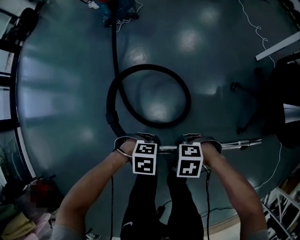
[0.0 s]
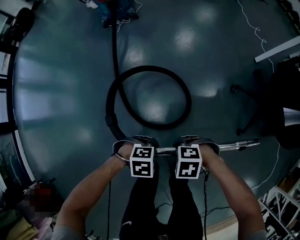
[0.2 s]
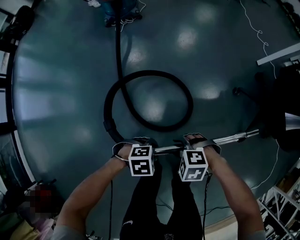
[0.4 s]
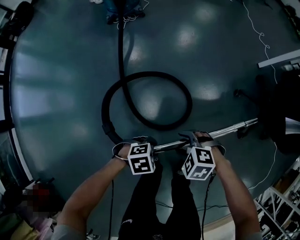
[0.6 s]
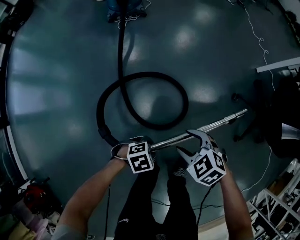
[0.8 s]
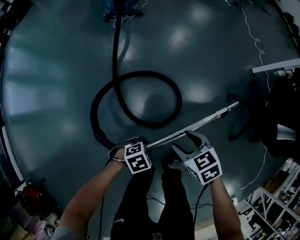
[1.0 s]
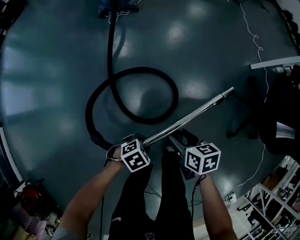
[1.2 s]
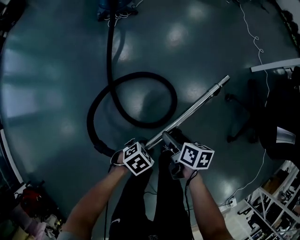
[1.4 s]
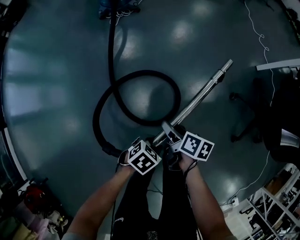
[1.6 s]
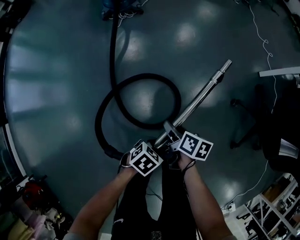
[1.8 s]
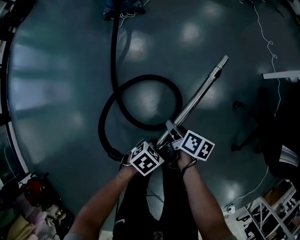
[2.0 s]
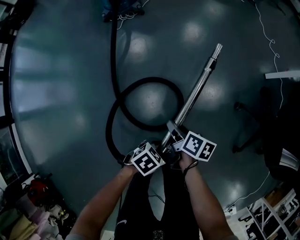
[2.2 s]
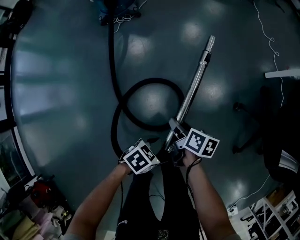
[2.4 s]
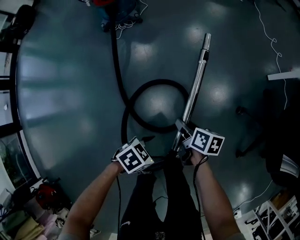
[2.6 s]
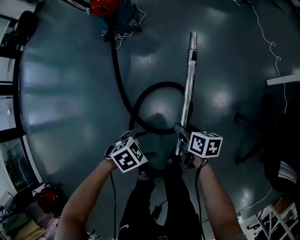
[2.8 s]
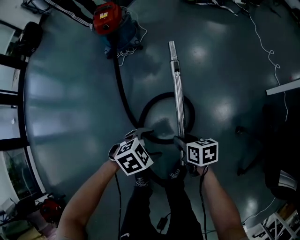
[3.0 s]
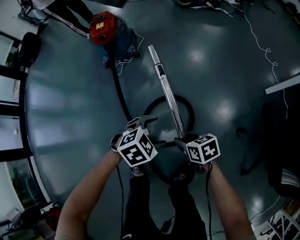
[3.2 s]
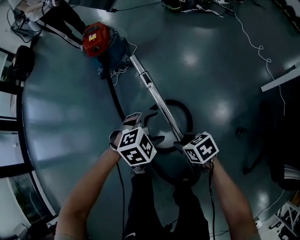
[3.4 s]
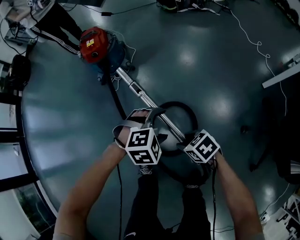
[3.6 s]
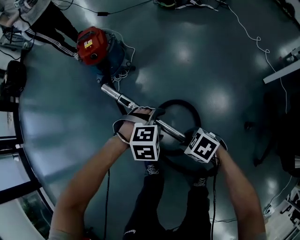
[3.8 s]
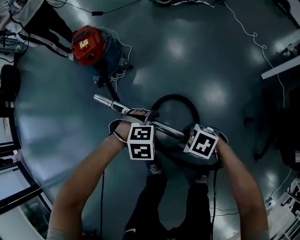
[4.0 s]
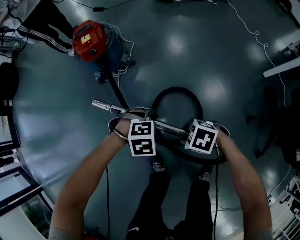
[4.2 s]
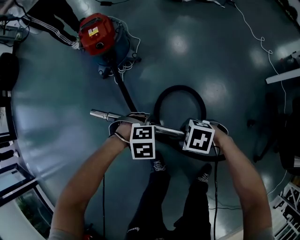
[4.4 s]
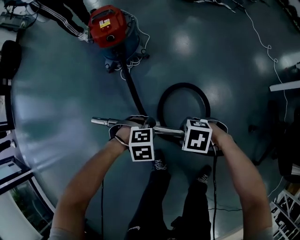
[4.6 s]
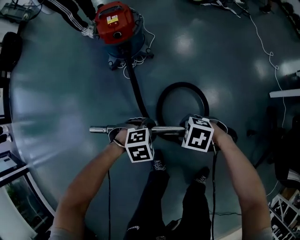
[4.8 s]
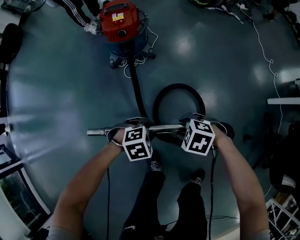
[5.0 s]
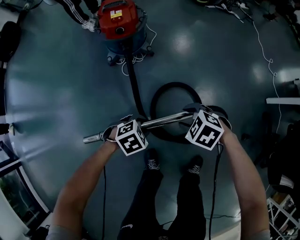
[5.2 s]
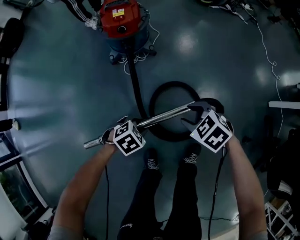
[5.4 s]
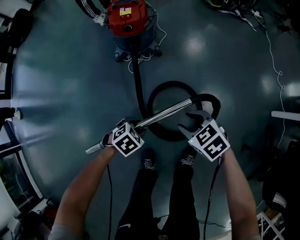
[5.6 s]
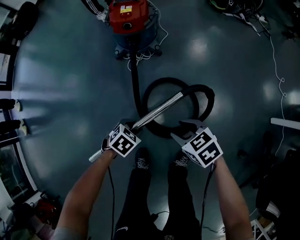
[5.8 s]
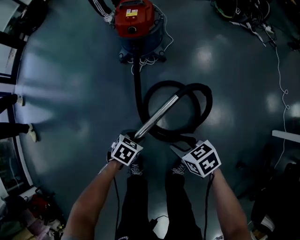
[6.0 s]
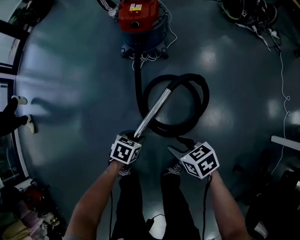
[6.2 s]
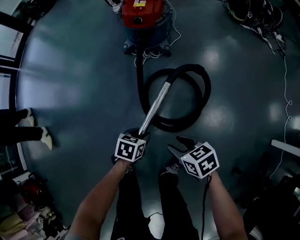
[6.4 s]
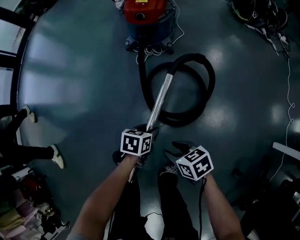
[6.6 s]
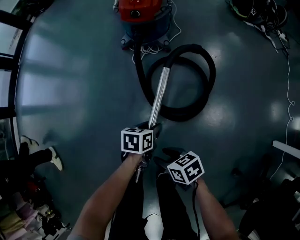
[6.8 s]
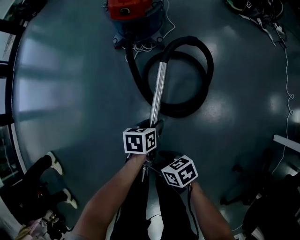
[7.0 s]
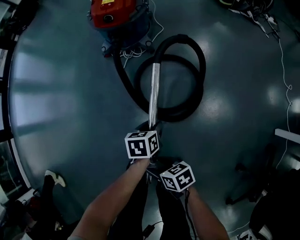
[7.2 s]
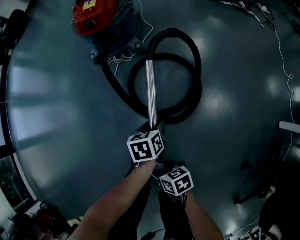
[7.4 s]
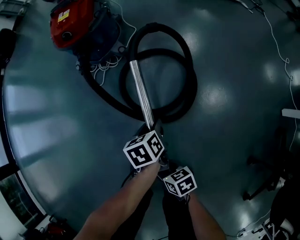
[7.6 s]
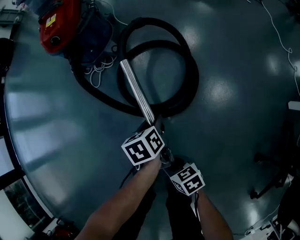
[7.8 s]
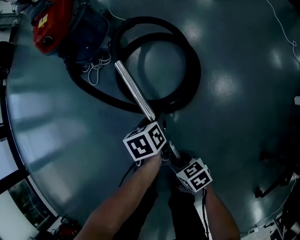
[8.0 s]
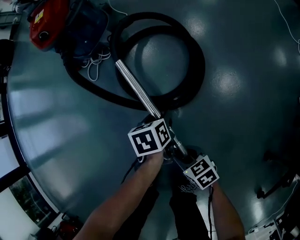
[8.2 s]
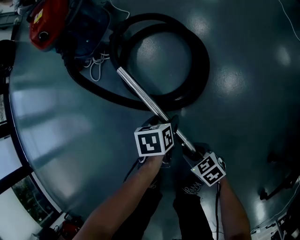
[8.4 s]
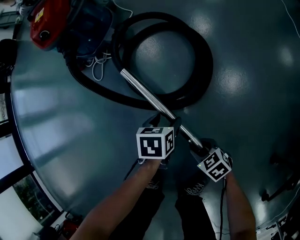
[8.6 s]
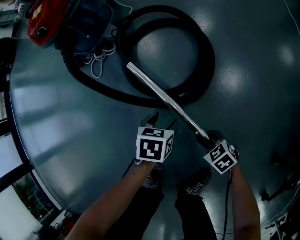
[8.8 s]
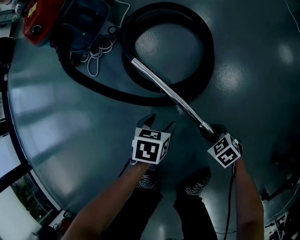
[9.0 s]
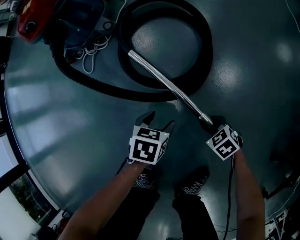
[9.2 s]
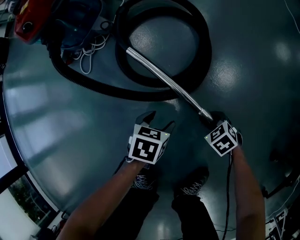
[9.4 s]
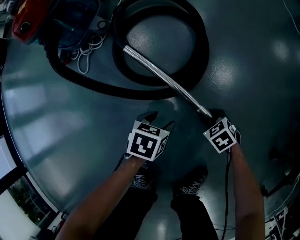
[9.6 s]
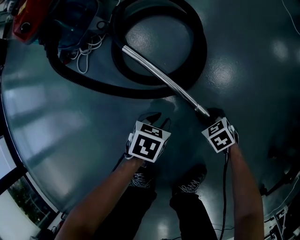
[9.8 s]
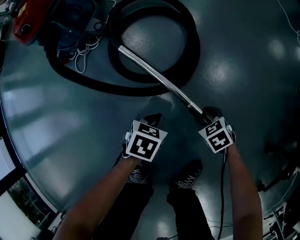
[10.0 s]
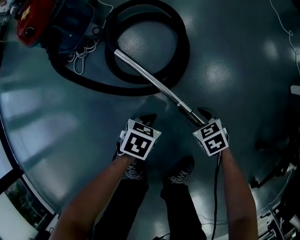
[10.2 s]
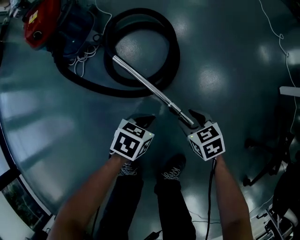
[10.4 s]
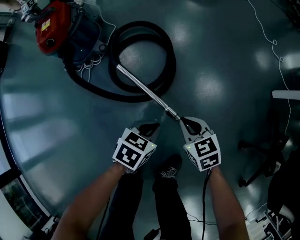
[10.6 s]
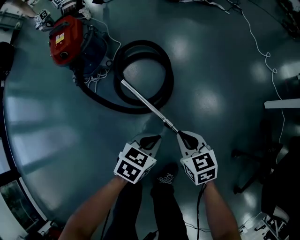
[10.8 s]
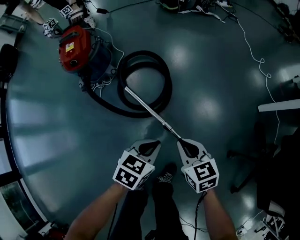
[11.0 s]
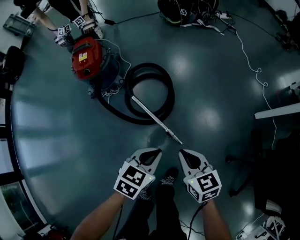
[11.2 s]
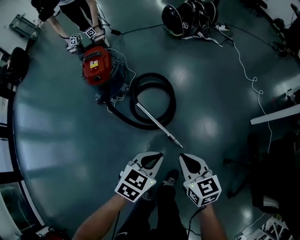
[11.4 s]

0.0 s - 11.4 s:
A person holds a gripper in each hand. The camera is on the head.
0.0 s - 1.4 s: The left gripper changes place by some 15 cm, and changes its angle by roughly 40 degrees; the right gripper ends up approximately 20 cm from where it was, rotates around the line of its fingers by roughly 90 degrees, clockwise from behind, and opens.
1.4 s - 2.8 s: The right gripper shifts by some 20 cm, and closes its fingers, while the left gripper changes place by some 20 cm, and opens up.
2.8 s - 4.2 s: The left gripper ends up approximately 30 cm from where it was, twists approximately 50 degrees clockwise, seen from behind, and closes its fingers. Meanwhile the right gripper moves about 20 cm, and rotates around the line of its fingers by some 60 degrees, counterclockwise from behind.
4.2 s - 5.6 s: The left gripper ends up about 15 cm from where it was, and rotates around the line of its fingers by about 50 degrees, counterclockwise from behind; the right gripper ends up about 15 cm from where it was.
5.6 s - 7.2 s: The left gripper ends up about 20 cm from where it was, and twists roughly 60 degrees counterclockwise, seen from behind, while the right gripper moves downward, roughly 15 cm, and turns by some 40 degrees.
7.2 s - 8.6 s: The right gripper goes about 30 cm downward and to the right, swivels some 30 degrees, and closes up; the left gripper goes approximately 20 cm downward and to the right, turns by roughly 20 degrees, and opens up.
8.6 s - 10.0 s: The right gripper ends up roughly 10 cm from where it was. Meanwhile the left gripper ends up roughly 5 cm from where it was, changes its angle by some 30 degrees, and closes its fingers.
10.0 s - 11.4 s: Both grippers travel together upward, approximately 60 cm. The right gripper angles its fingers upward, by about 40 degrees, and closes. The left gripper swivels roughly 30 degrees.

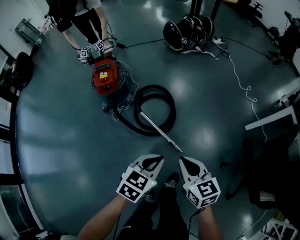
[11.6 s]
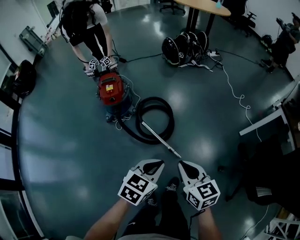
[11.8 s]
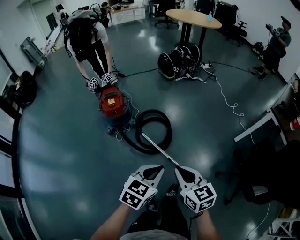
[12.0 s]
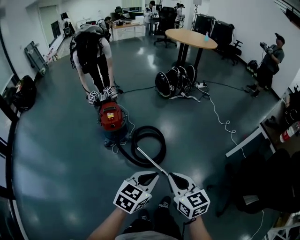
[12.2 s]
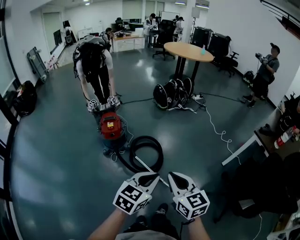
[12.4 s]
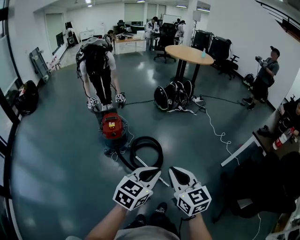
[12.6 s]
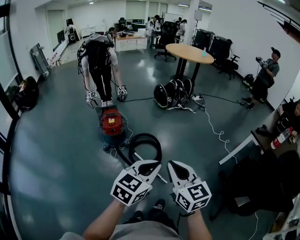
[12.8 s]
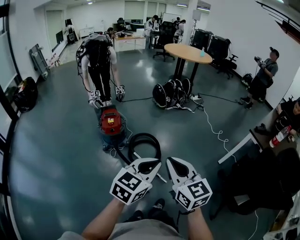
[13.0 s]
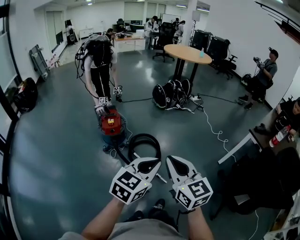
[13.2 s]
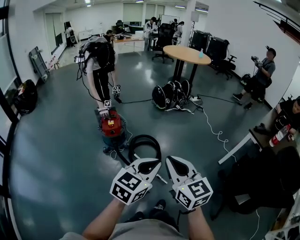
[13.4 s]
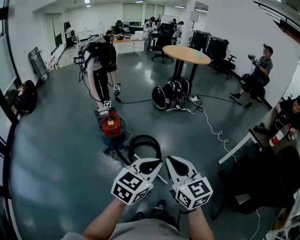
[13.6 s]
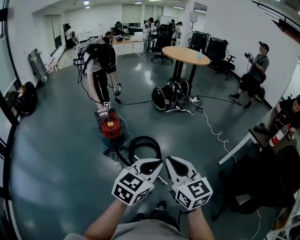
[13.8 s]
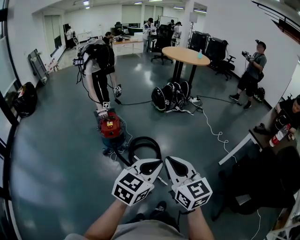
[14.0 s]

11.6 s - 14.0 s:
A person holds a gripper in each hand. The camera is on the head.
11.6 s - 12.8 s: Both grippers move upward, roughly 30 cm. The right gripper rotates some 20 degrees. Meanwhile the left gripper changes its angle by roughly 20 degrees.
12.8 s - 14.0 s: The grippers make only small movements.

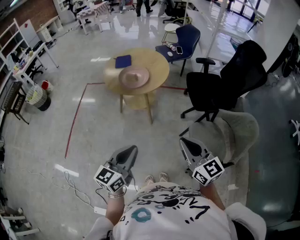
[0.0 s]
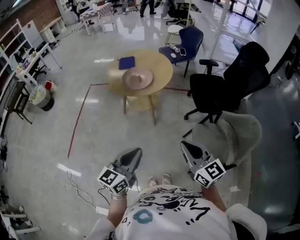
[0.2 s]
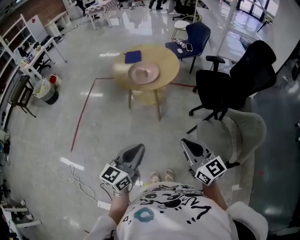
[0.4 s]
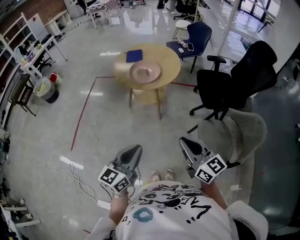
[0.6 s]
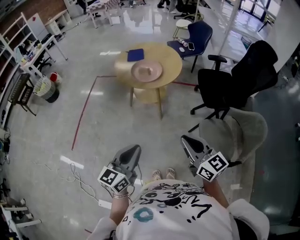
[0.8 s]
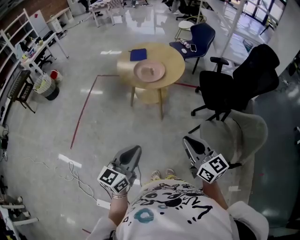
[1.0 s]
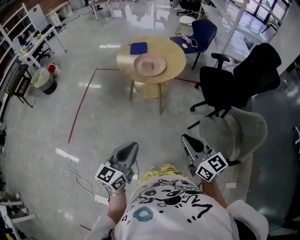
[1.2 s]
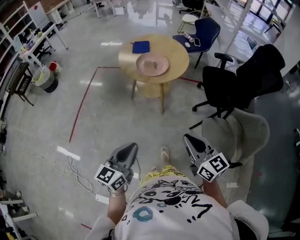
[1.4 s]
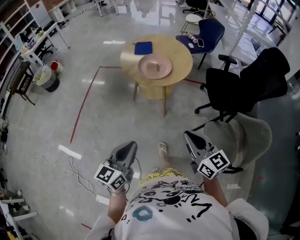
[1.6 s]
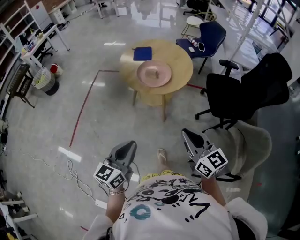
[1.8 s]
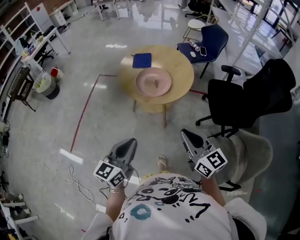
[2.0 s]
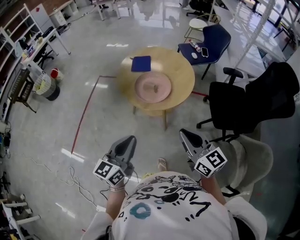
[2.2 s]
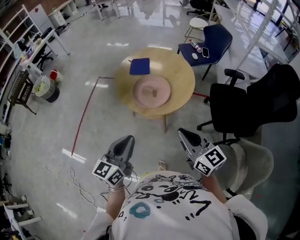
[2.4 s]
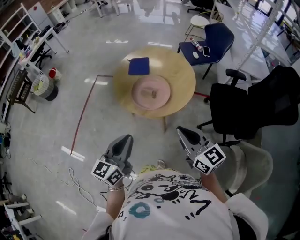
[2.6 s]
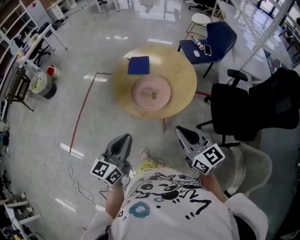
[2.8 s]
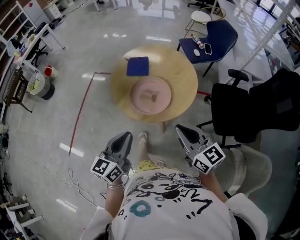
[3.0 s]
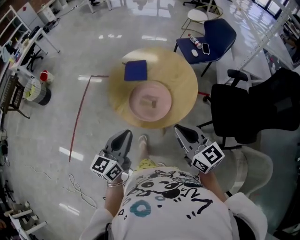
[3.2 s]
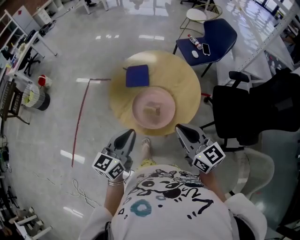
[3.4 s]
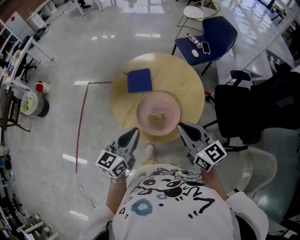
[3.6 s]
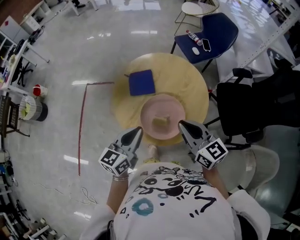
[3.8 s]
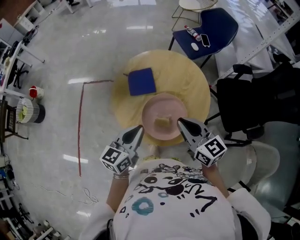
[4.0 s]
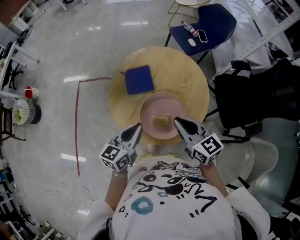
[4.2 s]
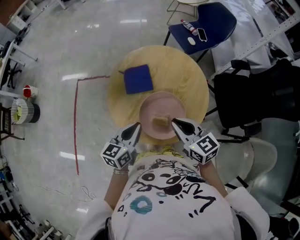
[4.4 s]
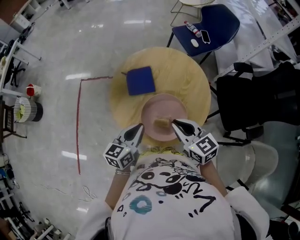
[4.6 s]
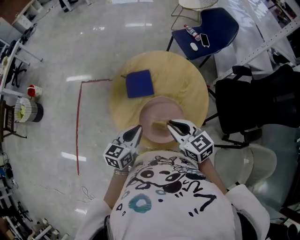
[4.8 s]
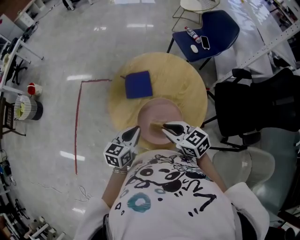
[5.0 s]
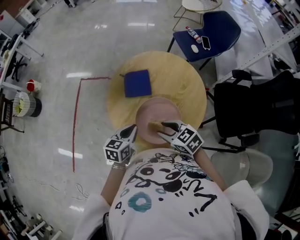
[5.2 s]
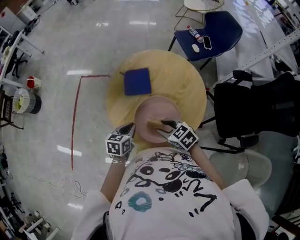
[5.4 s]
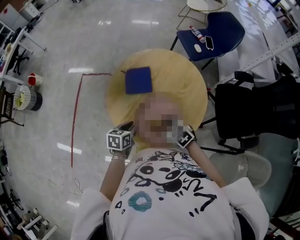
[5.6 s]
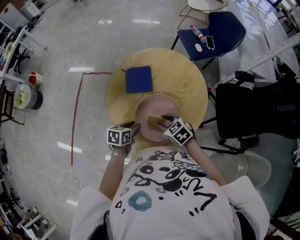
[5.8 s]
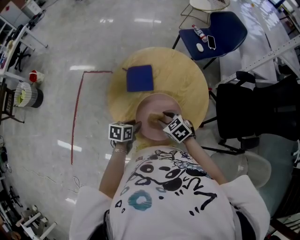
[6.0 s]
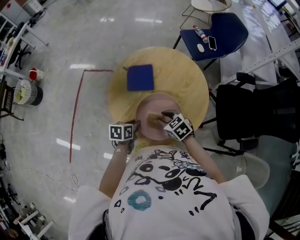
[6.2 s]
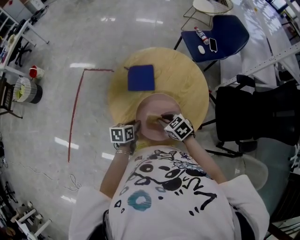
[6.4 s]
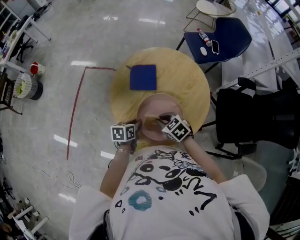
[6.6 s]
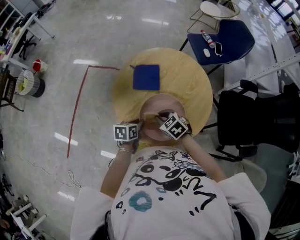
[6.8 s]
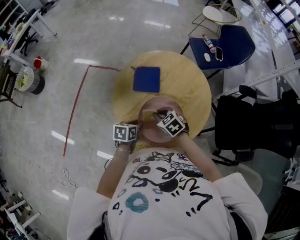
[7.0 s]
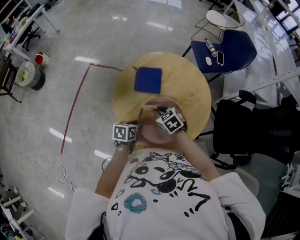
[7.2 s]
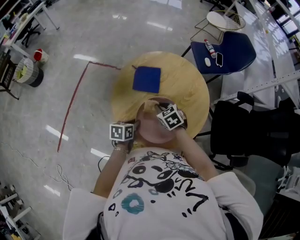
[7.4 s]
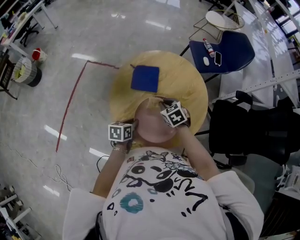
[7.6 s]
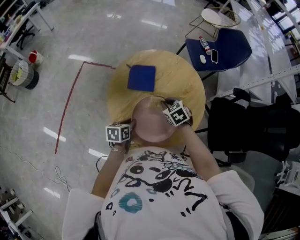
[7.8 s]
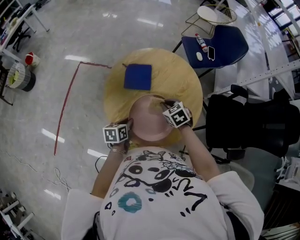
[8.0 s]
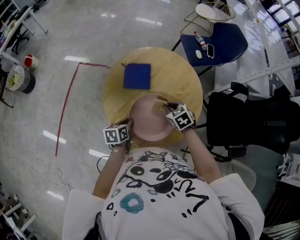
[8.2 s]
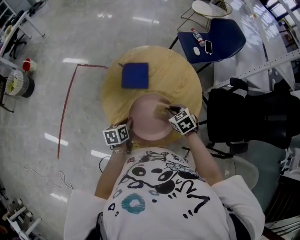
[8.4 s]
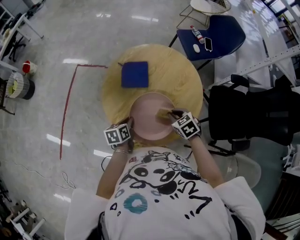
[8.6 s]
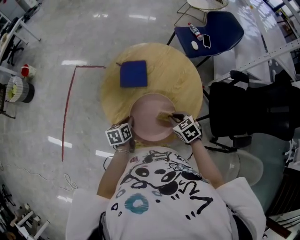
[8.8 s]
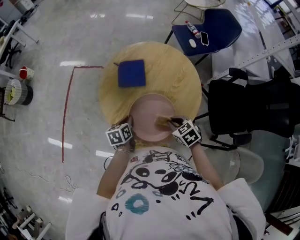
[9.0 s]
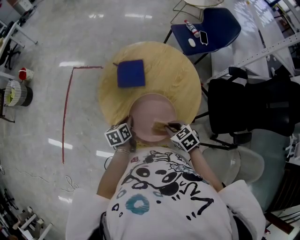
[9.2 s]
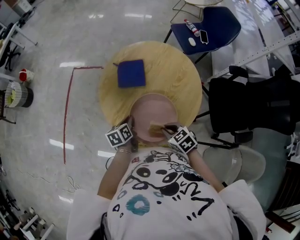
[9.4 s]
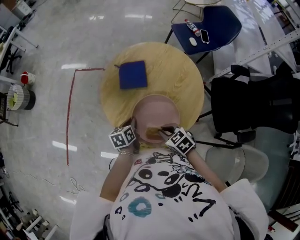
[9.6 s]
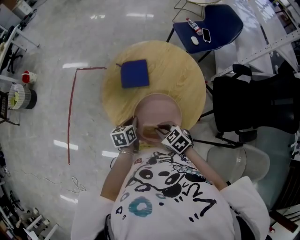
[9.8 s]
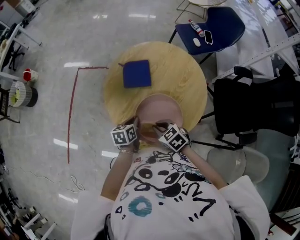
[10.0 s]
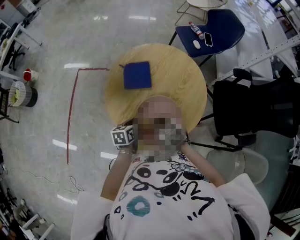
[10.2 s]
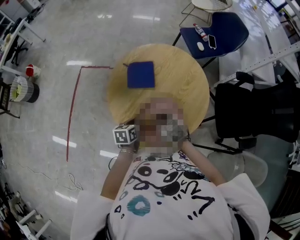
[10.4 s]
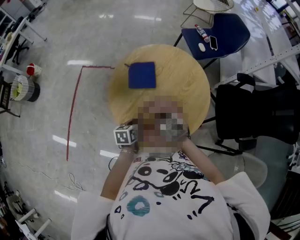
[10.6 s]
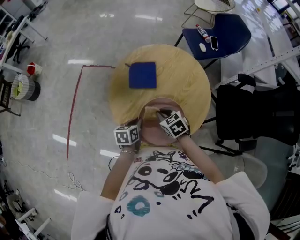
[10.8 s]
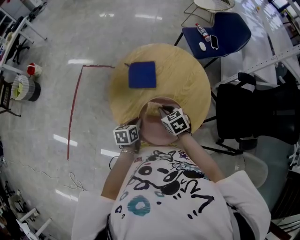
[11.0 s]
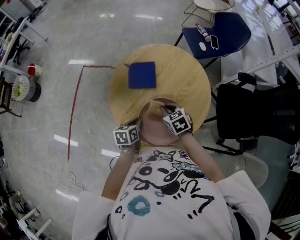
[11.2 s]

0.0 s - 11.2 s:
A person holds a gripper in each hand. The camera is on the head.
0.0 s - 1.6 s: The left gripper travels to the left by roughly 10 cm. The right gripper is displaced to the left and forward by approximately 10 cm.
1.6 s - 3.2 s: Both grippers travel together forward, about 40 cm.
3.2 s - 4.8 s: The right gripper moves forward, to the left and downward, roughly 25 cm, while the left gripper is displaced forward and downward by some 25 cm, and changes its angle by about 20 degrees.
4.8 s - 6.4 s: Both grippers travel together downward, some 15 cm. The left gripper rotates about 30 degrees. Meanwhile the right gripper rotates about 30 degrees, and opens, then closes again.
6.4 s - 8.0 s: The right gripper moves forward and to the right, approximately 10 cm.
8.0 s - 9.6 s: The right gripper shifts roughly 15 cm backward.
9.6 s - 11.2 s: The right gripper shifts roughly 15 cm forward.
